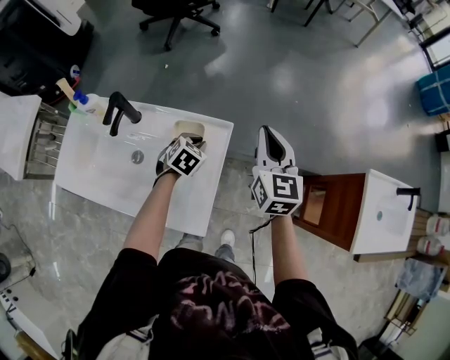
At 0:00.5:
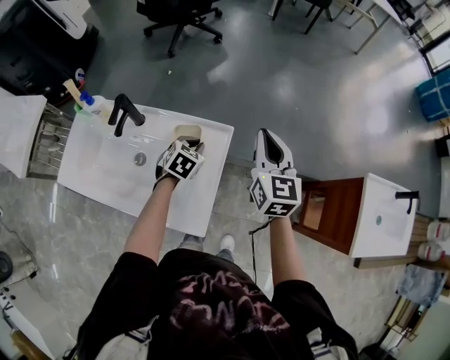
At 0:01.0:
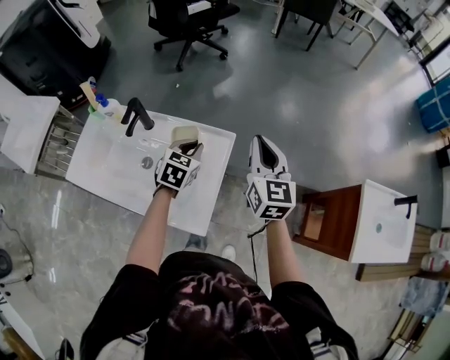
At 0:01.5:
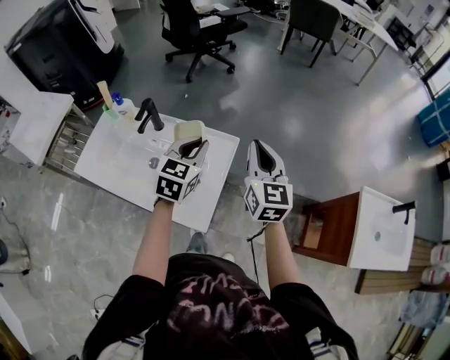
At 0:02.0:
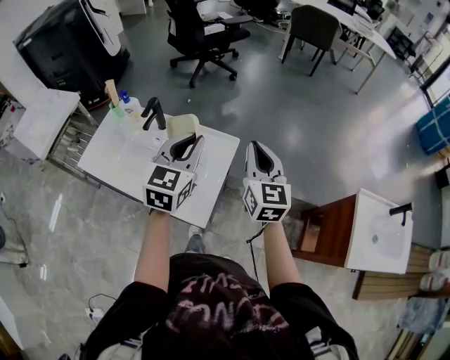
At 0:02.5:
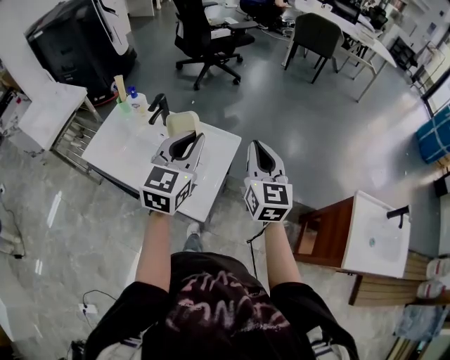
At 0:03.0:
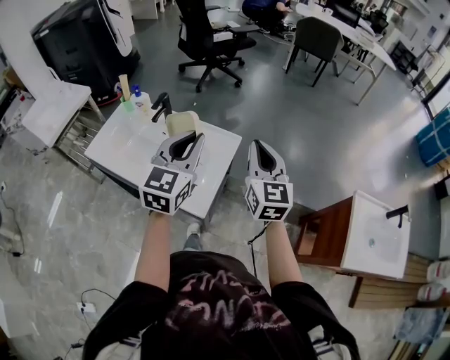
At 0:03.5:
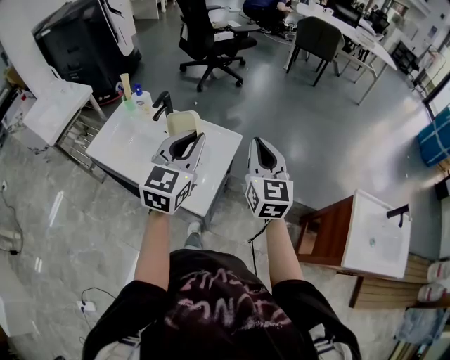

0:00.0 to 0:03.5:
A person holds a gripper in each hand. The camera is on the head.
0:00.0 to 0:02.0: The right gripper heads backward and upward, covering approximately 15 cm; the left gripper moves upward and backward, roughly 35 cm, and angles its fingers upward, by roughly 40 degrees.
0:02.0 to 0:03.5: Both grippers travel together backward, roughly 5 cm.

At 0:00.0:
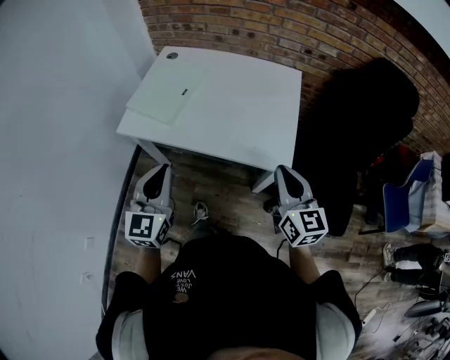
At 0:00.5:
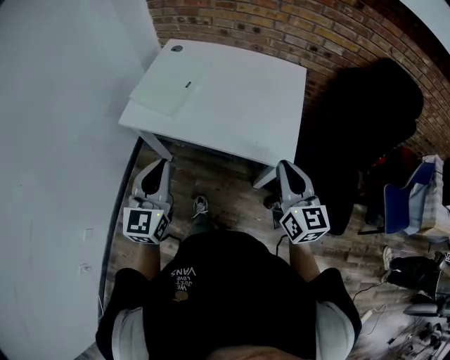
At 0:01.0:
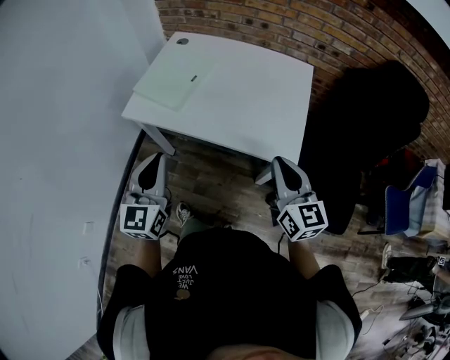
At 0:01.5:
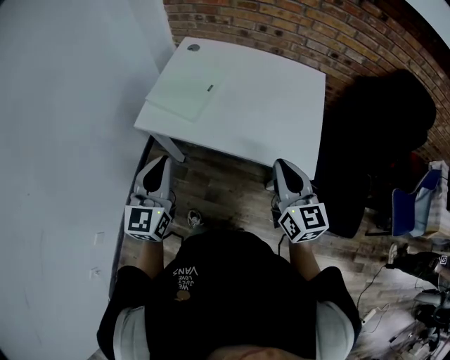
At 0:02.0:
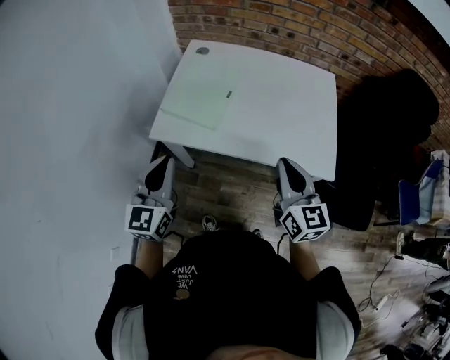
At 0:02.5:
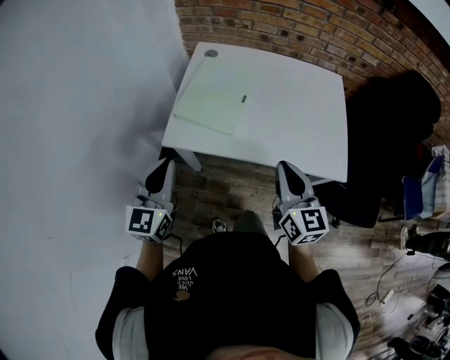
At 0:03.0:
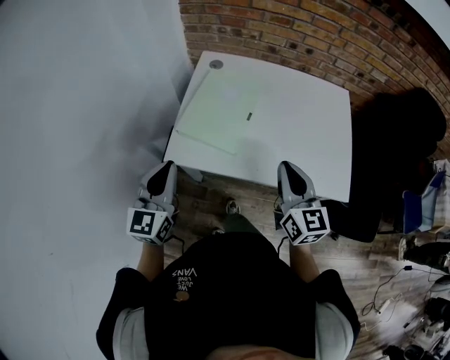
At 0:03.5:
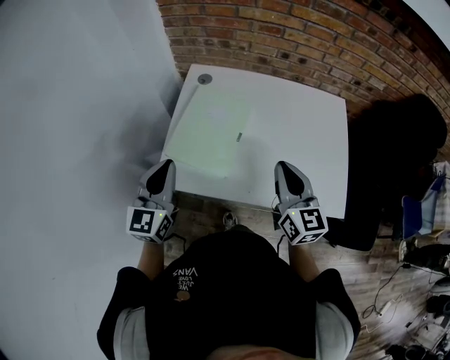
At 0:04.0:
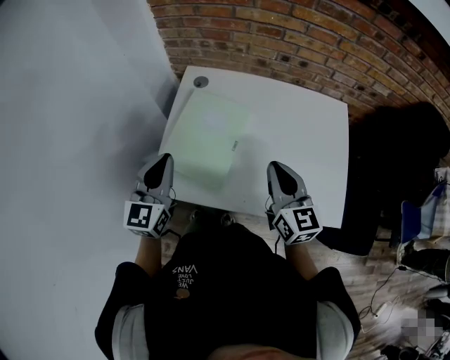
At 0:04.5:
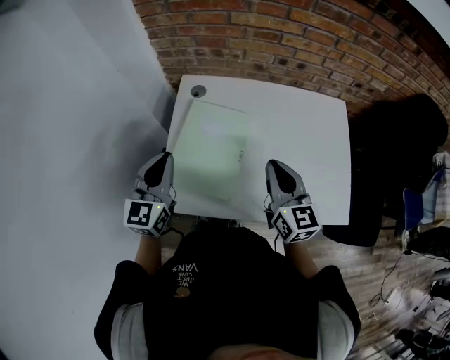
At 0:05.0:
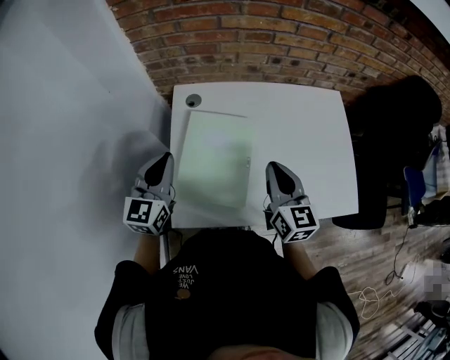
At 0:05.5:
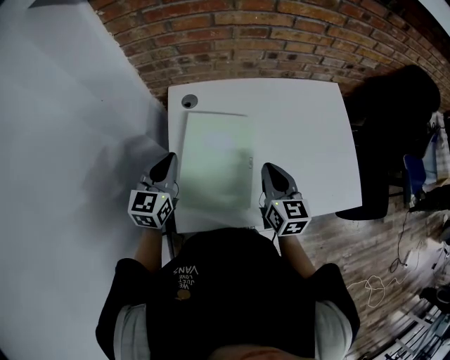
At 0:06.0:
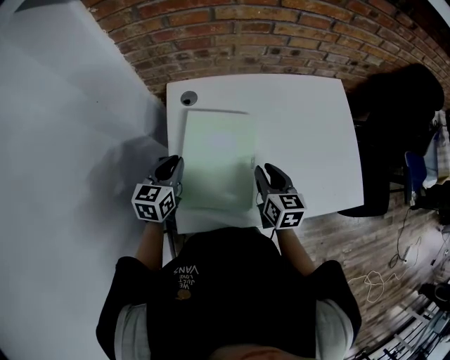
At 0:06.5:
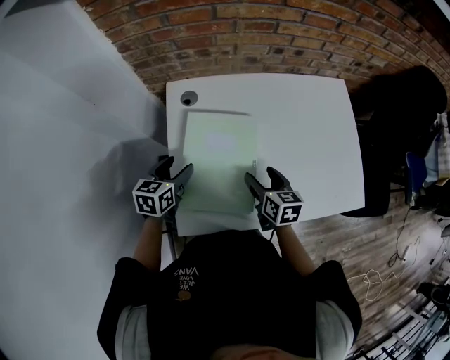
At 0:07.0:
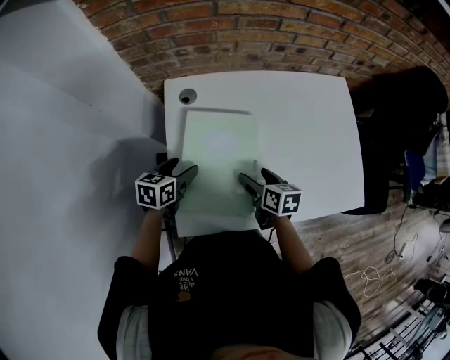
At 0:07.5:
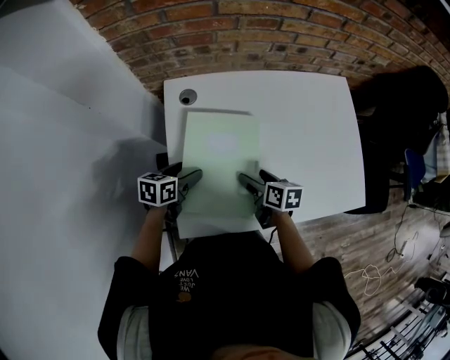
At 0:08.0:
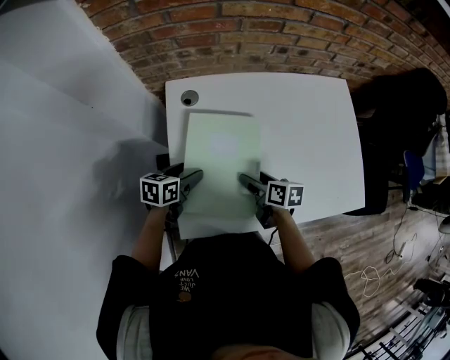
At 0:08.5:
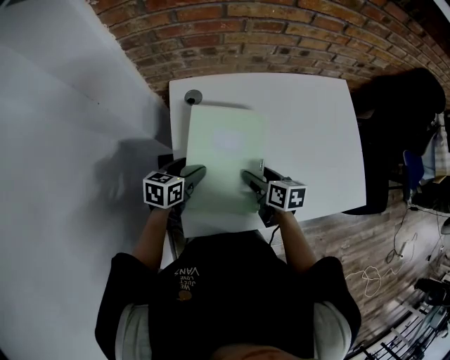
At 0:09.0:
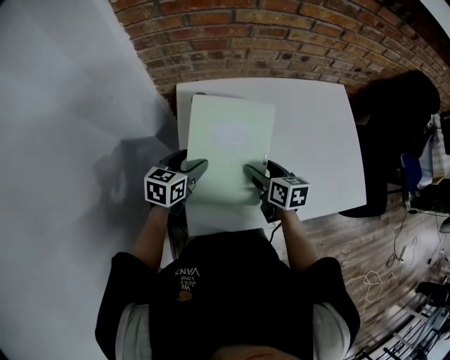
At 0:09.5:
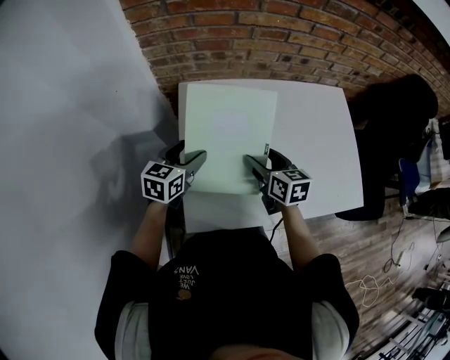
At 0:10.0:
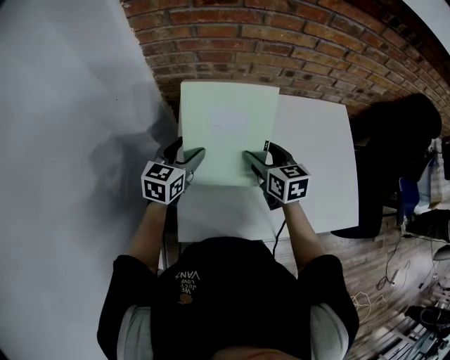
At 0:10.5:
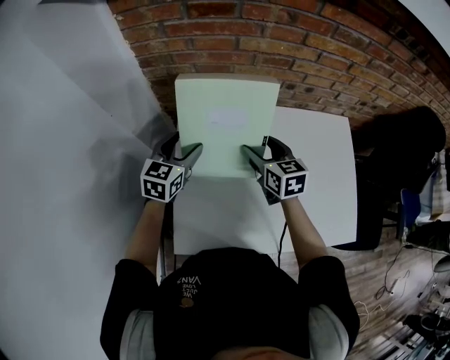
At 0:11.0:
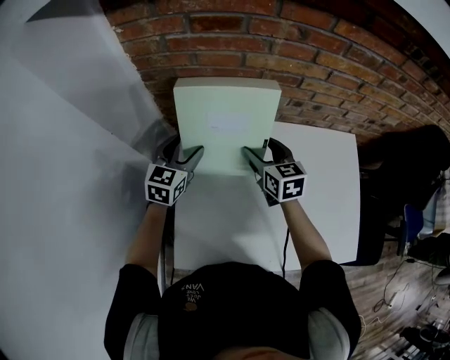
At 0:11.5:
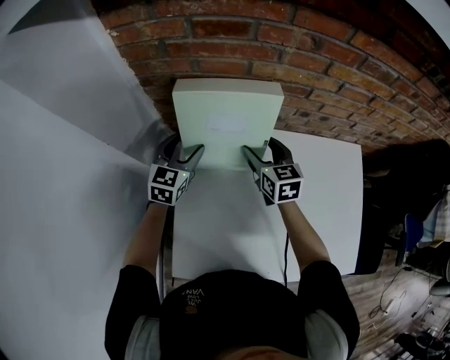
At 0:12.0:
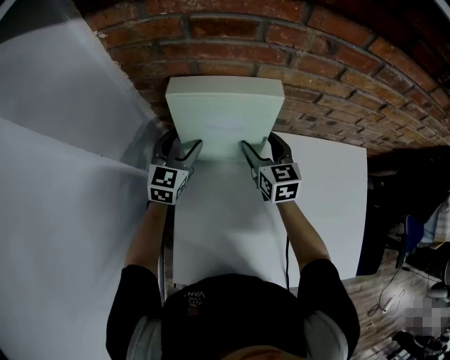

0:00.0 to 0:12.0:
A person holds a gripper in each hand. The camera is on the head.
0:00.0 to 0:02.0: The left gripper travels to the left and forward by about 20 cm. Meanwhile the right gripper moves to the left, about 20 cm.
0:02.0 to 0:04.0: Both grippers move forward, approximately 20 cm.
0:04.0 to 0:06.0: The left gripper heads forward, downward and to the left, covering approximately 20 cm, and changes its angle by roughly 30 degrees, while the right gripper is displaced downward, to the left and forward by roughly 15 cm, and changes its angle by some 30 degrees.
0:06.0 to 0:08.0: Both grippers travel together downward, roughly 10 cm. The left gripper changes its angle by about 30 degrees, and opens. Meanwhile the right gripper changes its angle by roughly 30 degrees, and opens up.
0:08.0 to 0:10.0: Both grippers move upward and forward, approximately 15 cm. The right gripper swivels roughly 40 degrees; the left gripper turns by approximately 30 degrees.
0:10.0 to 0:12.0: Both grippers travel together forward, some 20 cm.

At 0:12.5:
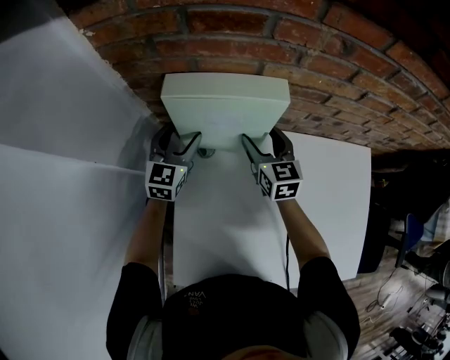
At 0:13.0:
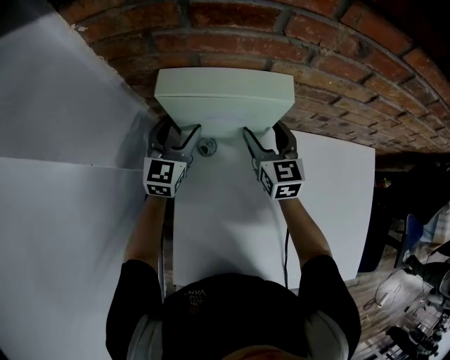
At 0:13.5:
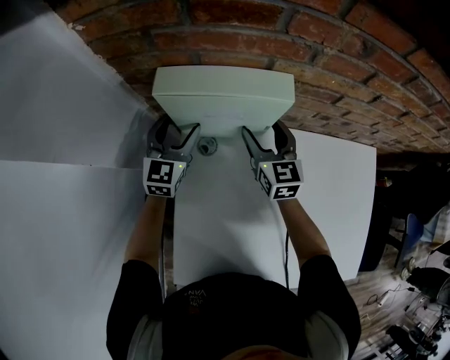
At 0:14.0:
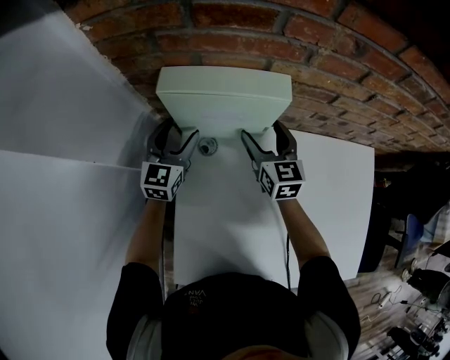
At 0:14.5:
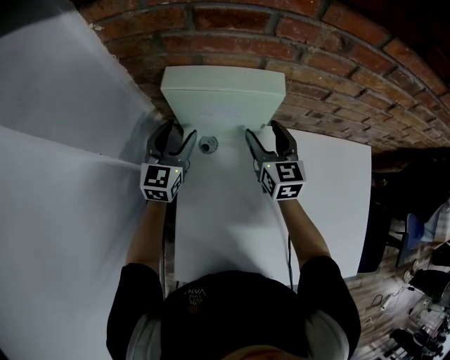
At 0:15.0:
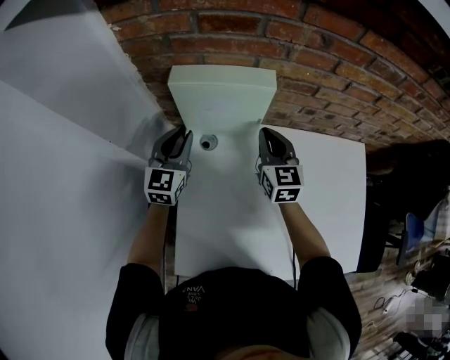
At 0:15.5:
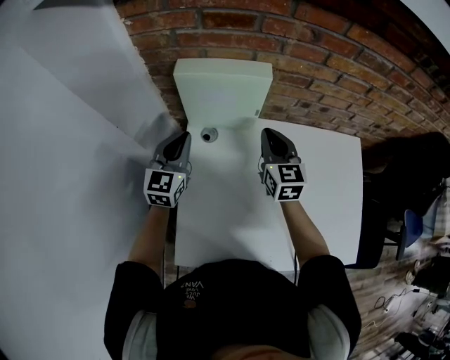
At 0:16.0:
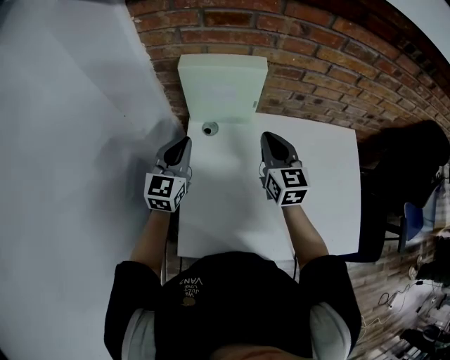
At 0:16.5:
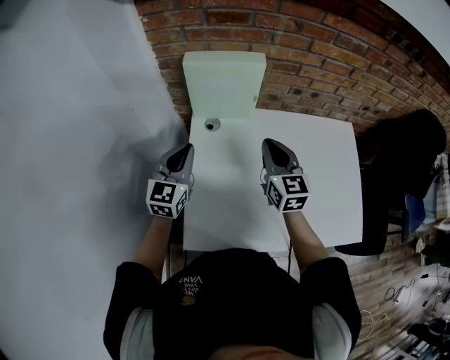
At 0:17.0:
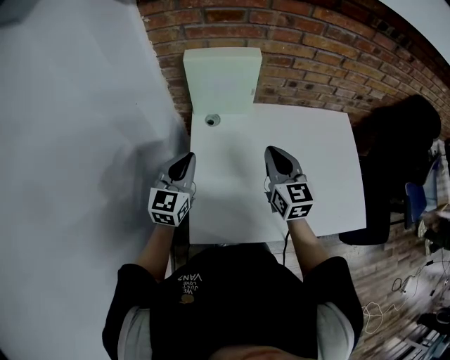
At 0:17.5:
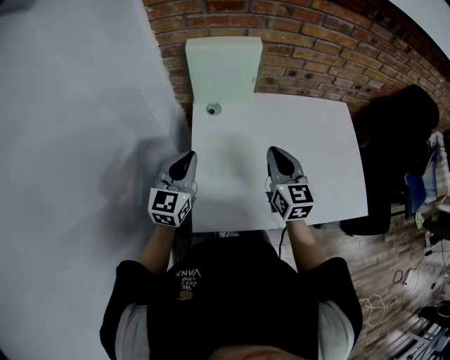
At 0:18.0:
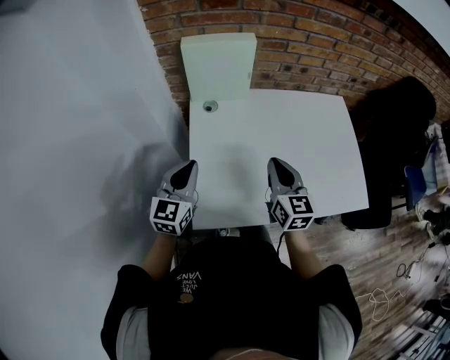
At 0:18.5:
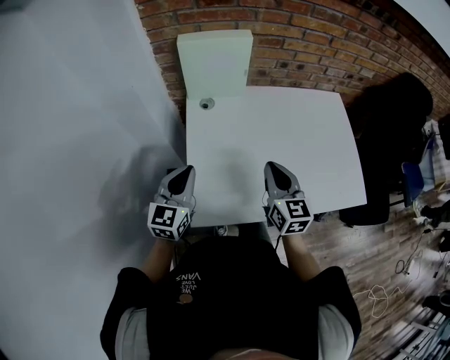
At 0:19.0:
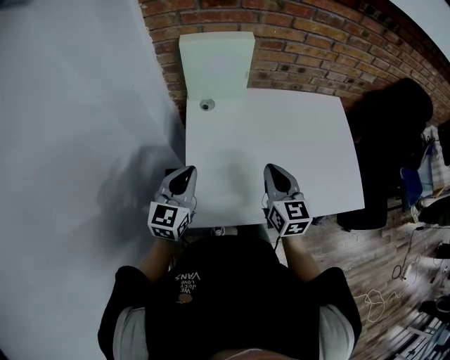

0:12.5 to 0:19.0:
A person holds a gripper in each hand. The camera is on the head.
0:12.5 to 0:14.5: The grippers stay close to where they were, moving slightly.
0:14.5 to 0:17.0: Both grippers move backward, roughly 25 cm. The right gripper closes its fingers. The left gripper closes.
0:17.0 to 0:19.0: Both grippers move backward, about 10 cm.

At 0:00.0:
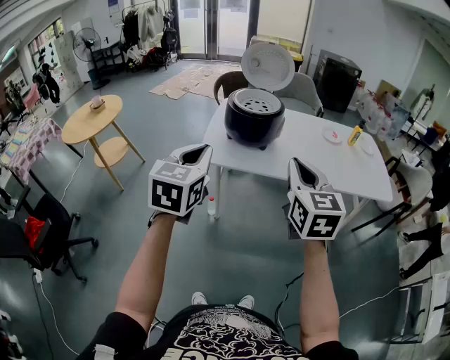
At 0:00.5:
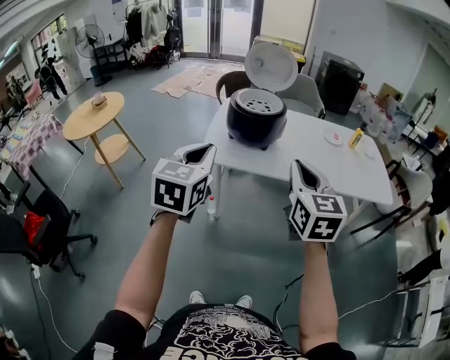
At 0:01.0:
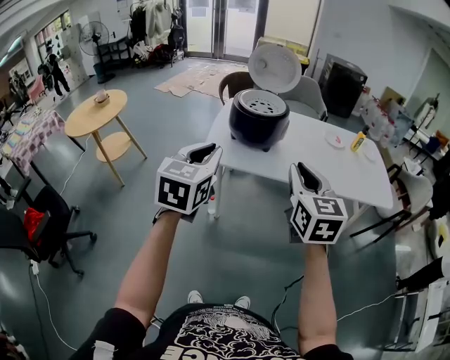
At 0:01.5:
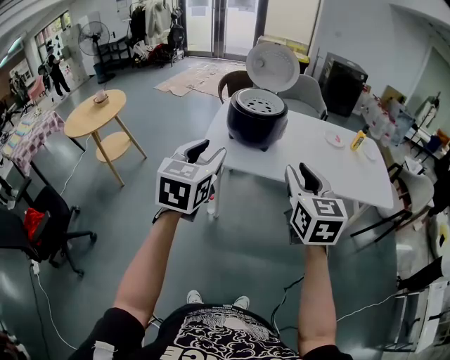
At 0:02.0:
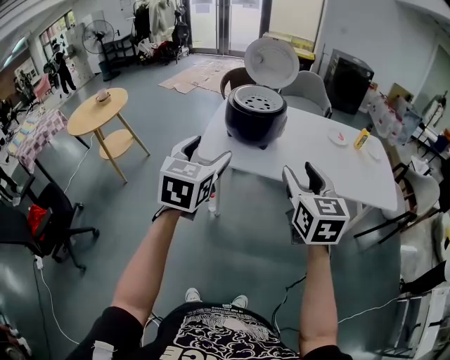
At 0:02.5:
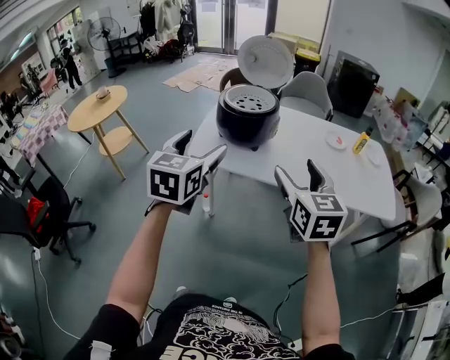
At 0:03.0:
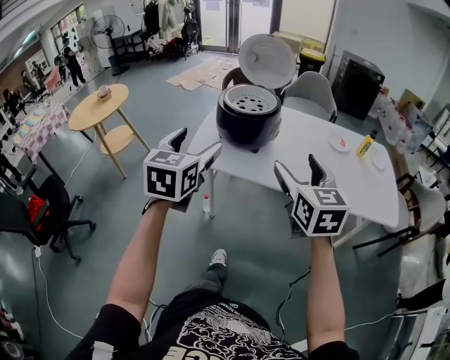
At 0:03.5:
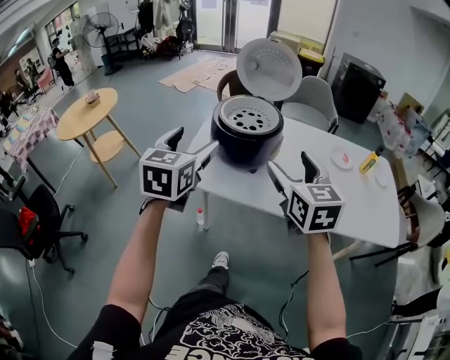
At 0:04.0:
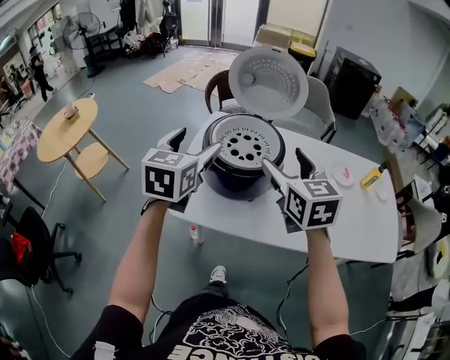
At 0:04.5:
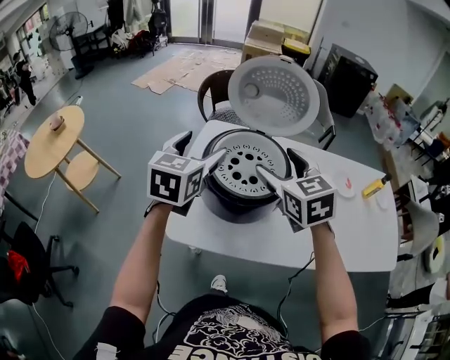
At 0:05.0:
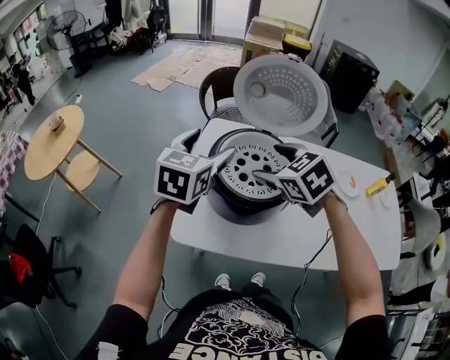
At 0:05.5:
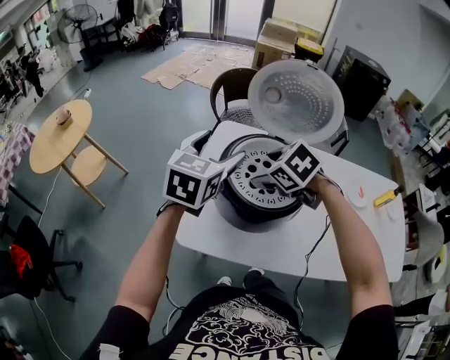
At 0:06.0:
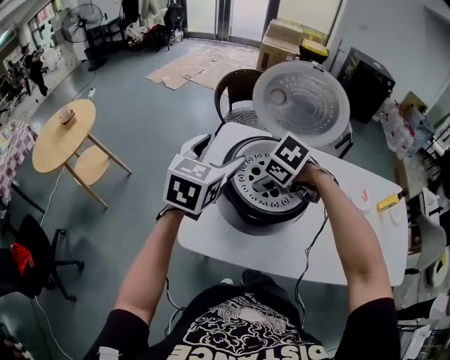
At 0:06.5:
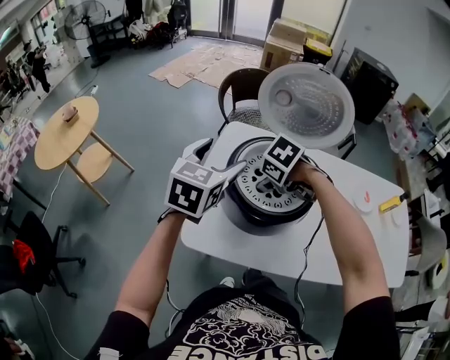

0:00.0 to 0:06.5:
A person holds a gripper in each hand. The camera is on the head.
0:00.0 to 0:02.0: The right gripper shifts by approximately 5 cm, and opens its fingers. The left gripper goes approximately 5 cm to the right, and opens its fingers.
0:02.0 to 0:04.5: The two grippers travel together, forward, about 60 cm. The right gripper opens its fingers.
0:04.5 to 0:06.5: The left gripper moves some 5 cm. Meanwhile the right gripper is displaced downward by about 15 cm, and tips its fingers downward by approximately 50 degrees.
